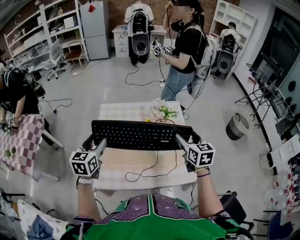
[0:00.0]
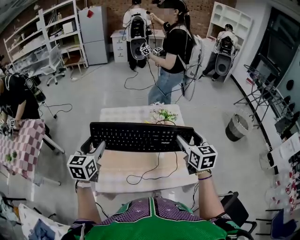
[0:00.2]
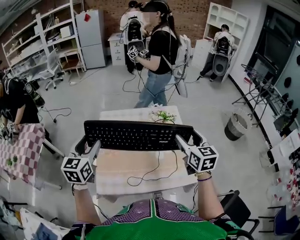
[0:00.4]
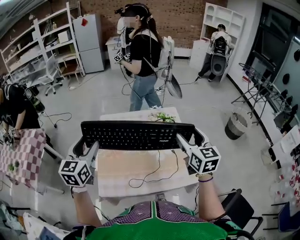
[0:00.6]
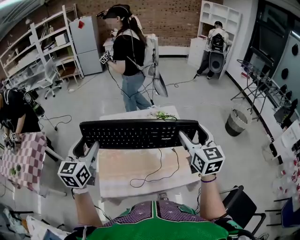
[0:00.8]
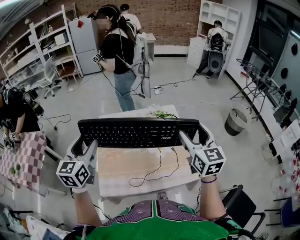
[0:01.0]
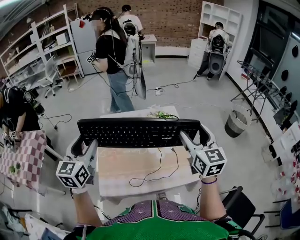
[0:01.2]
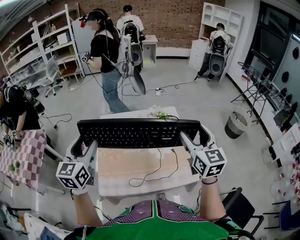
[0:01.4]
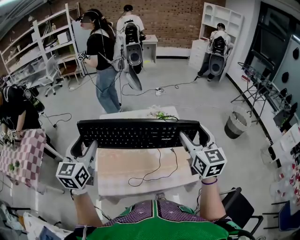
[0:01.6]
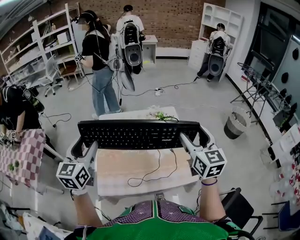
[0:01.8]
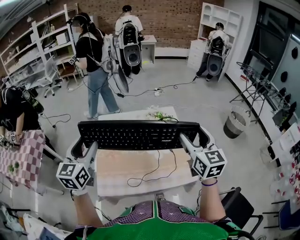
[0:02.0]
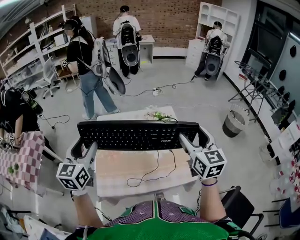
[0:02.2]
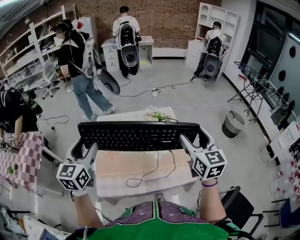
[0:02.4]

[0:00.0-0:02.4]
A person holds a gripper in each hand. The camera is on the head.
0:00.0 to 0:01.2: The left gripper moves upward, about 15 cm. The right gripper shifts some 15 cm upward and backward.
0:01.2 to 0:02.4: The grippers stay close to where they were, moving slightly.

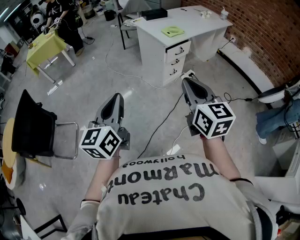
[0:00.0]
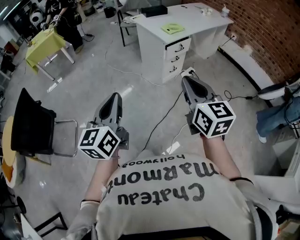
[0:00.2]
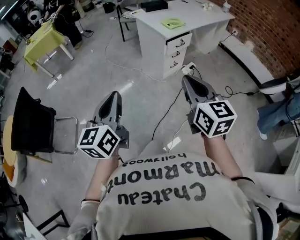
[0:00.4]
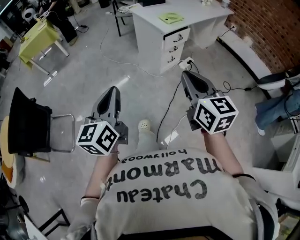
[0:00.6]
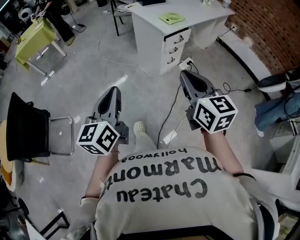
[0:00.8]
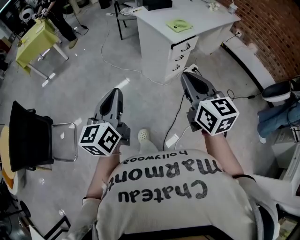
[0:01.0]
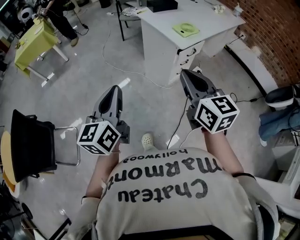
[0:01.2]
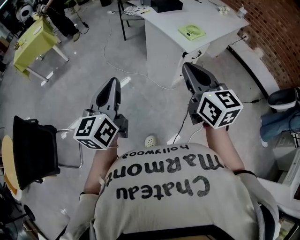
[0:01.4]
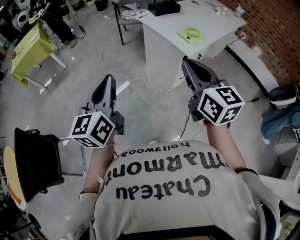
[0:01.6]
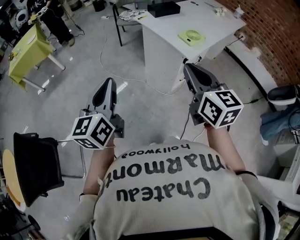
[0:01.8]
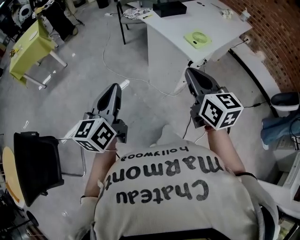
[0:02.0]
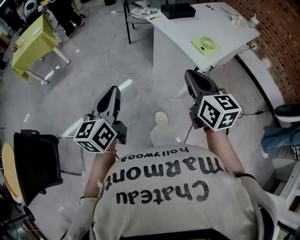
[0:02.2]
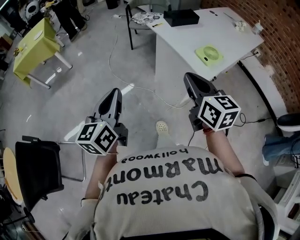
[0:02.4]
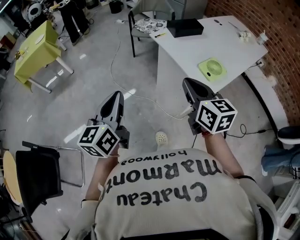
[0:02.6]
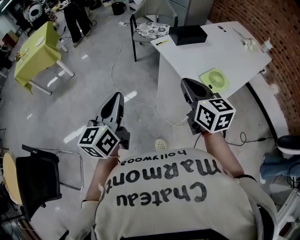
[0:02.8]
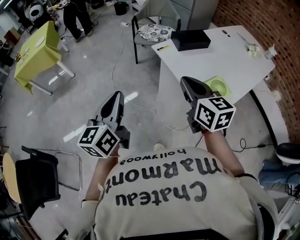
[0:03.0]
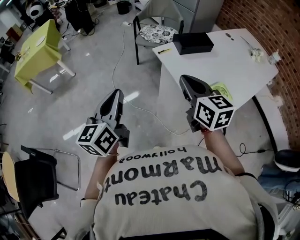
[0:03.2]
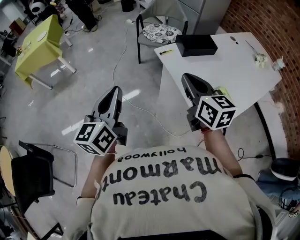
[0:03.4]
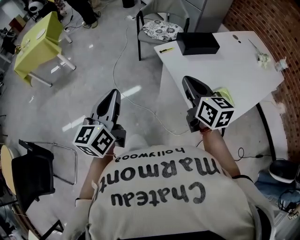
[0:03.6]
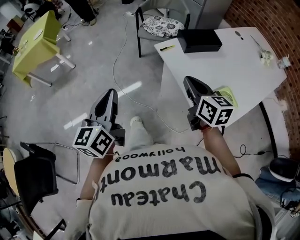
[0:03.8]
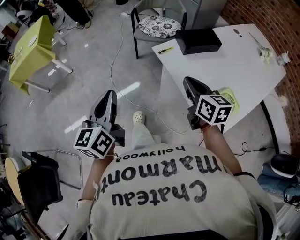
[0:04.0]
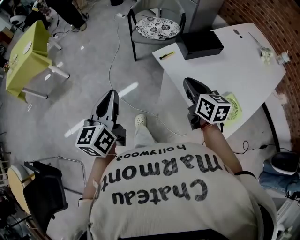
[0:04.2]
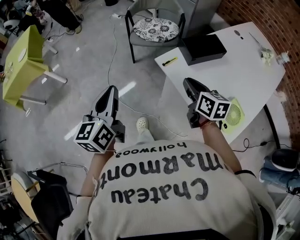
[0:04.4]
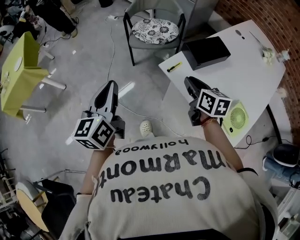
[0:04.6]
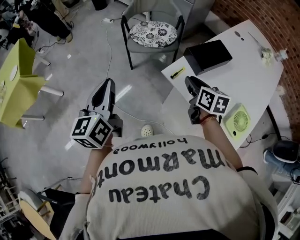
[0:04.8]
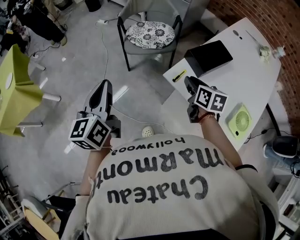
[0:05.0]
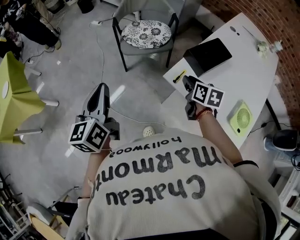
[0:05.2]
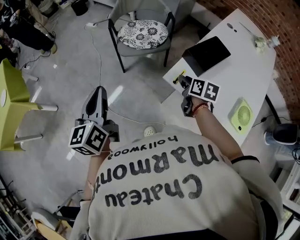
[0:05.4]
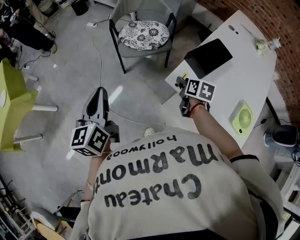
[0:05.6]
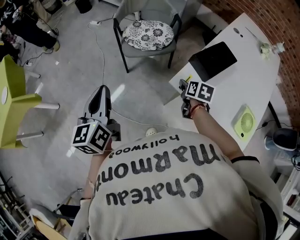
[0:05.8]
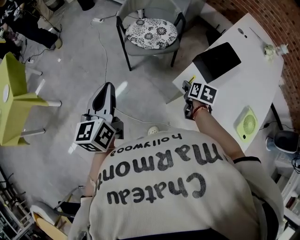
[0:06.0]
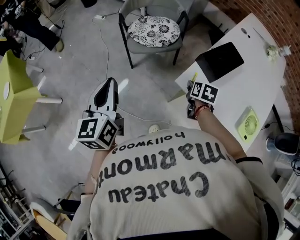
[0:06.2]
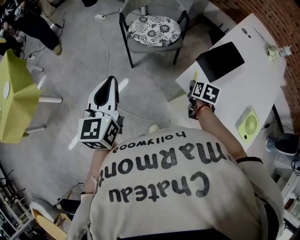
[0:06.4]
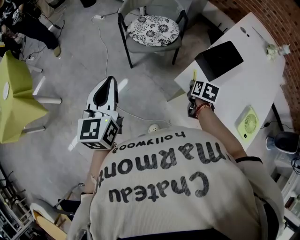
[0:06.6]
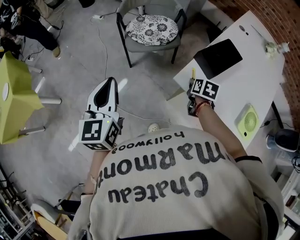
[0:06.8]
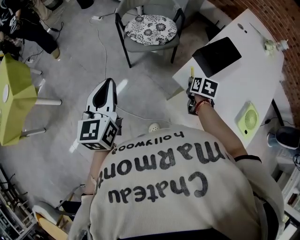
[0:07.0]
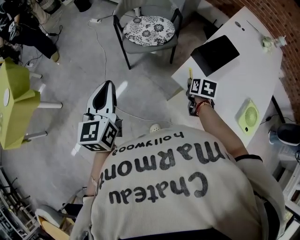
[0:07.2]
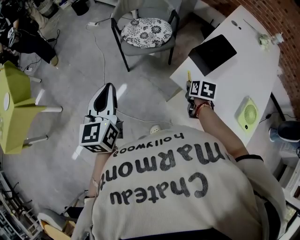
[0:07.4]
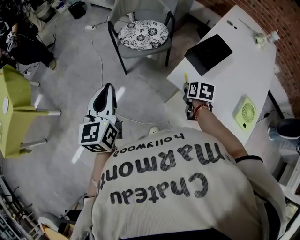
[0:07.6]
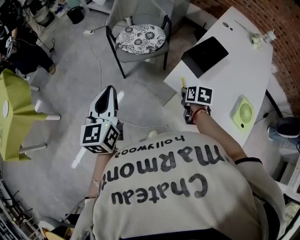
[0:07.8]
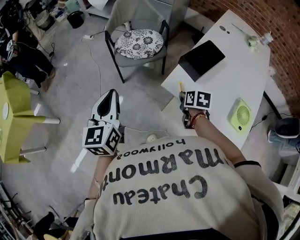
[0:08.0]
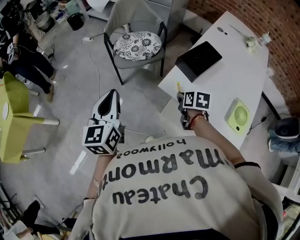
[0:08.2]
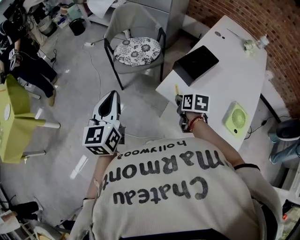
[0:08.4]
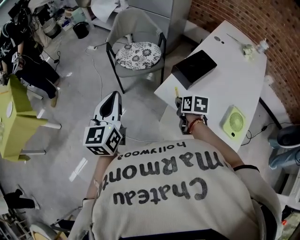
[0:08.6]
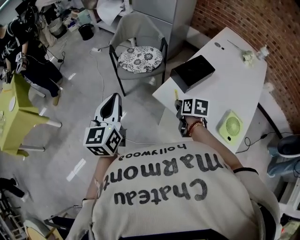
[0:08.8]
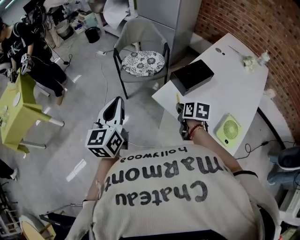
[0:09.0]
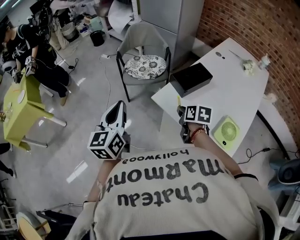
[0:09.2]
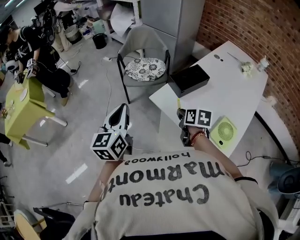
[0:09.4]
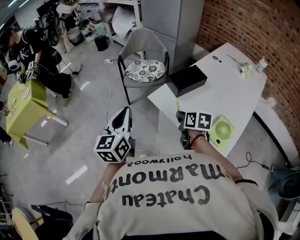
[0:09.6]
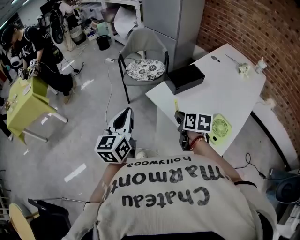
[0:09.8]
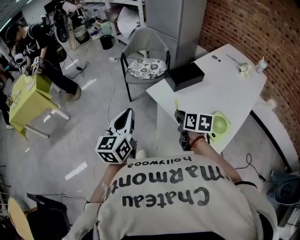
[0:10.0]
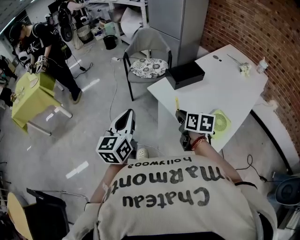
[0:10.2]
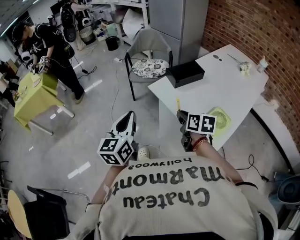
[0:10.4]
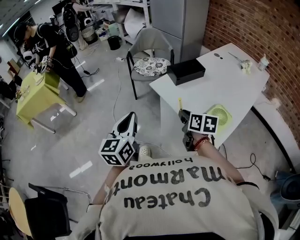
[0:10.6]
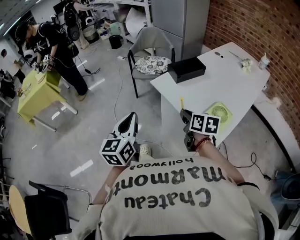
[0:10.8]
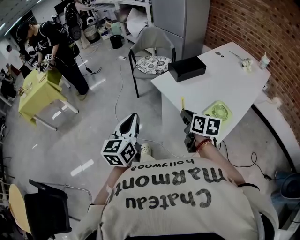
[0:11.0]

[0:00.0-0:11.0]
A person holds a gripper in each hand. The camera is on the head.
0:00.0 to 0:01.6: The left gripper moves forward, roughly 35 cm; the right gripper travels forward and to the left by approximately 35 cm.
0:01.6 to 0:03.2: Both grippers move forward, roughly 40 cm.
0:03.2 to 0:04.8: The right gripper moves forward and downward, about 35 cm, rotates about 30 degrees, and opens up; the left gripper goes approximately 35 cm forward.
0:04.8 to 0:06.2: The right gripper moves downward and forward, roughly 15 cm, and swivels some 30 degrees. Meanwhile the left gripper shifts approximately 10 cm forward and to the left.
0:06.2 to 0:07.8: The right gripper is displaced backward by approximately 5 cm.
0:07.8 to 0:09.4: The left gripper travels backward, to the right and upward by some 20 cm. The right gripper heads upward, backward and to the right, covering roughly 15 cm.
0:09.4 to 0:11.0: Both grippers move backward, about 20 cm.

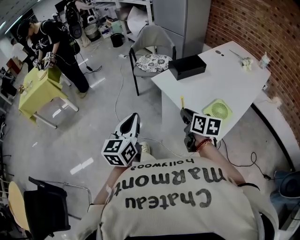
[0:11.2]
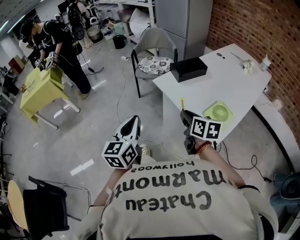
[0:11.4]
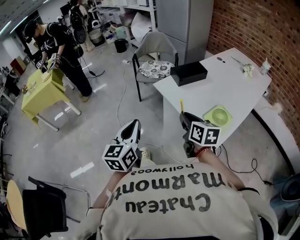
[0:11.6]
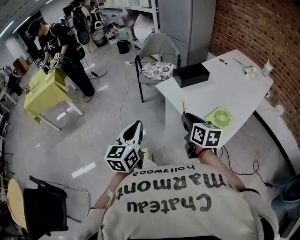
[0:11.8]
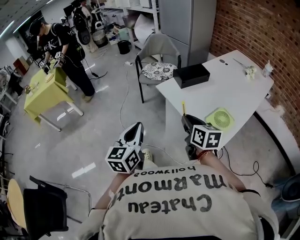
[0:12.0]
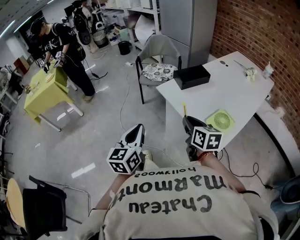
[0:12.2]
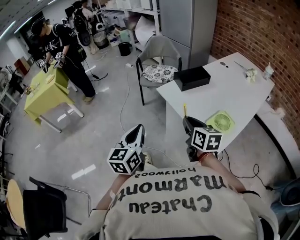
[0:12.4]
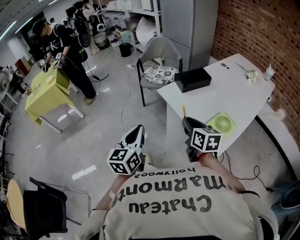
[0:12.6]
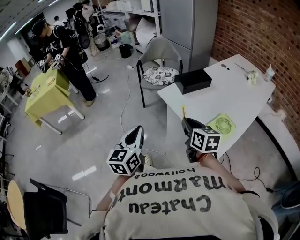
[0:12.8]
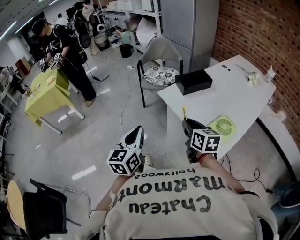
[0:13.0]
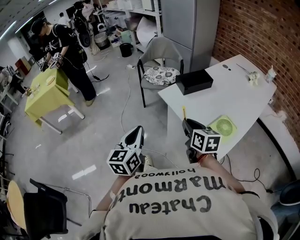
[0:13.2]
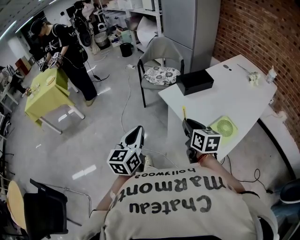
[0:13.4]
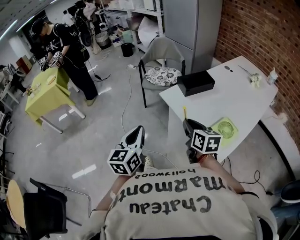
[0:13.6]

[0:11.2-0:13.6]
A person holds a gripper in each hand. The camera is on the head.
0:11.2 to 0:13.6: The grippers move only a little.

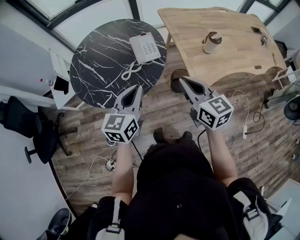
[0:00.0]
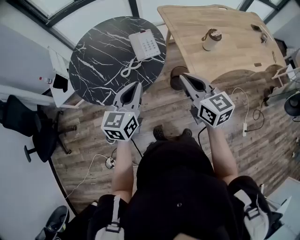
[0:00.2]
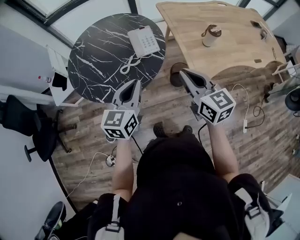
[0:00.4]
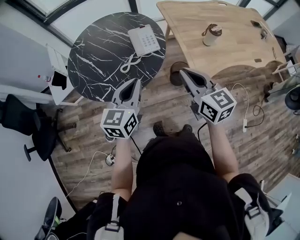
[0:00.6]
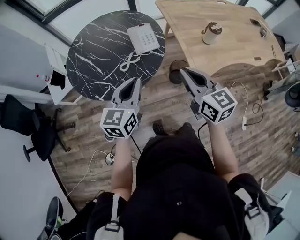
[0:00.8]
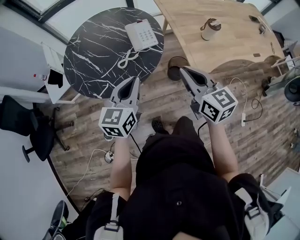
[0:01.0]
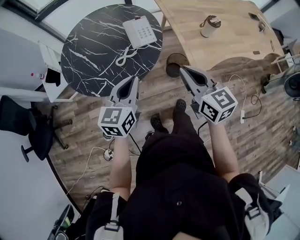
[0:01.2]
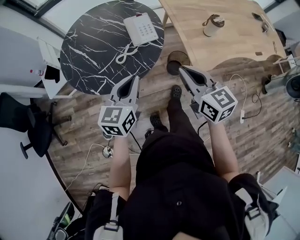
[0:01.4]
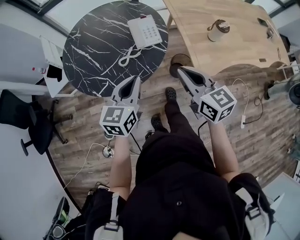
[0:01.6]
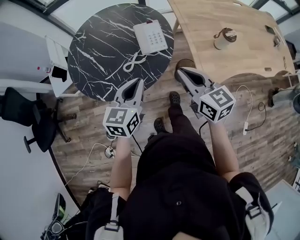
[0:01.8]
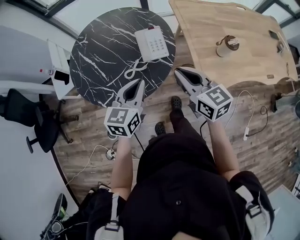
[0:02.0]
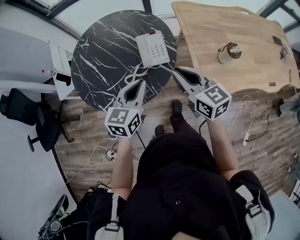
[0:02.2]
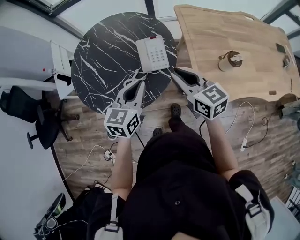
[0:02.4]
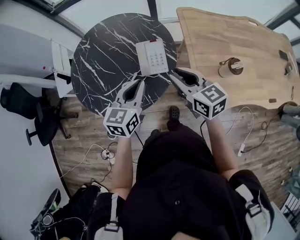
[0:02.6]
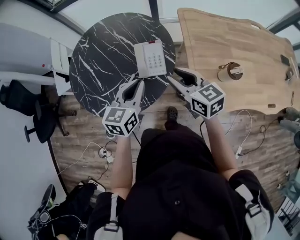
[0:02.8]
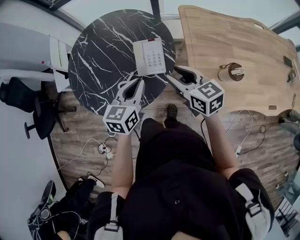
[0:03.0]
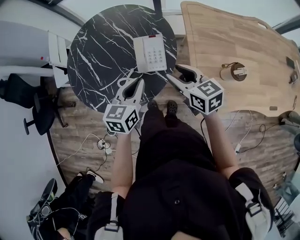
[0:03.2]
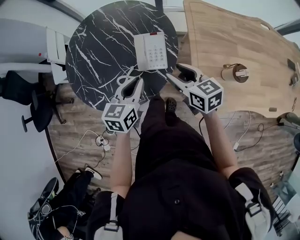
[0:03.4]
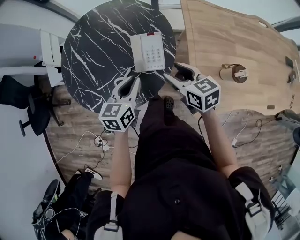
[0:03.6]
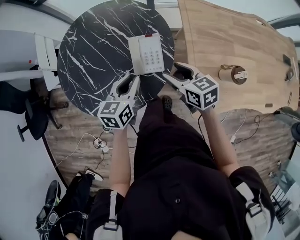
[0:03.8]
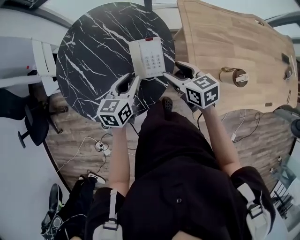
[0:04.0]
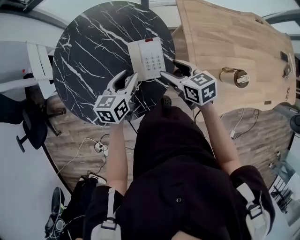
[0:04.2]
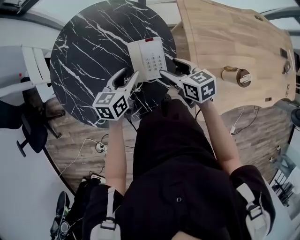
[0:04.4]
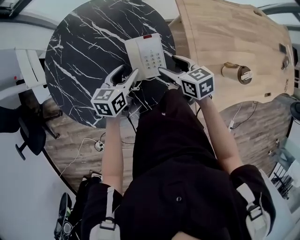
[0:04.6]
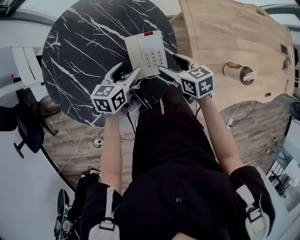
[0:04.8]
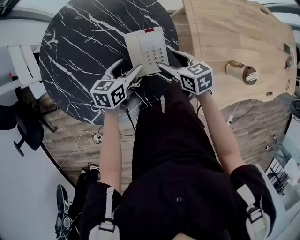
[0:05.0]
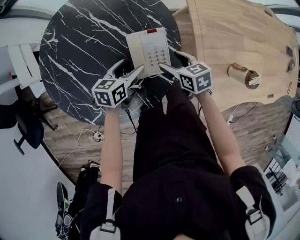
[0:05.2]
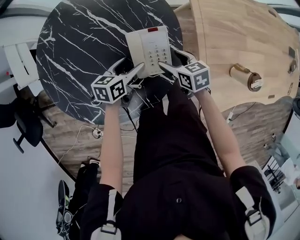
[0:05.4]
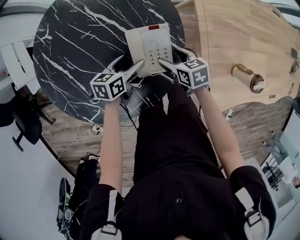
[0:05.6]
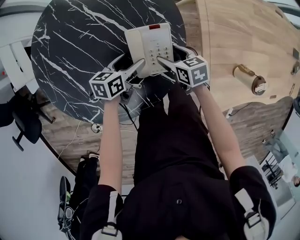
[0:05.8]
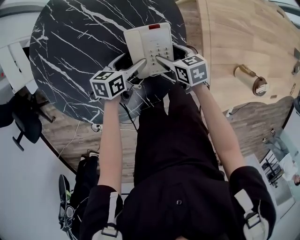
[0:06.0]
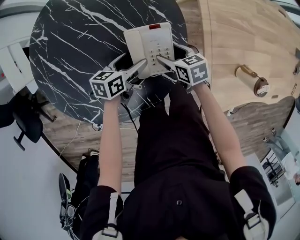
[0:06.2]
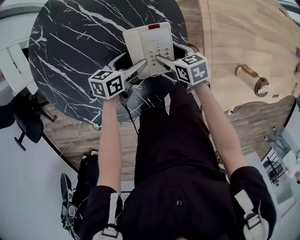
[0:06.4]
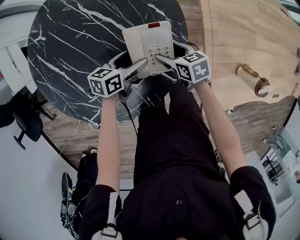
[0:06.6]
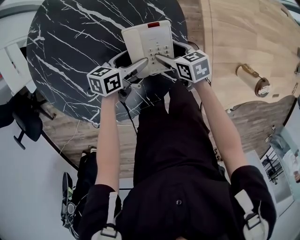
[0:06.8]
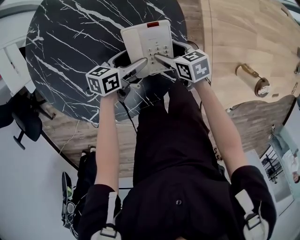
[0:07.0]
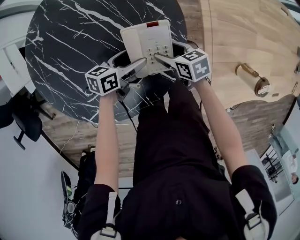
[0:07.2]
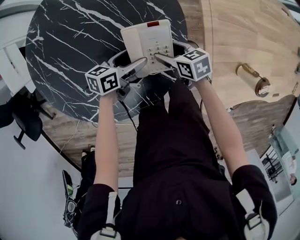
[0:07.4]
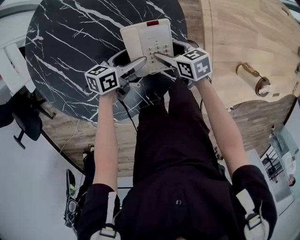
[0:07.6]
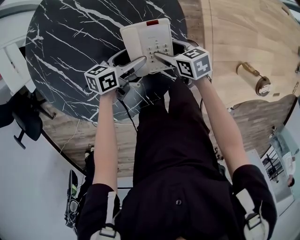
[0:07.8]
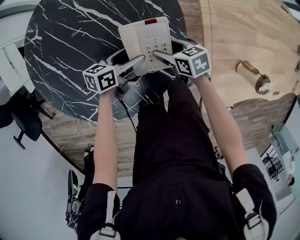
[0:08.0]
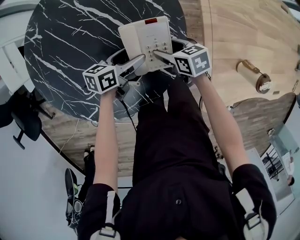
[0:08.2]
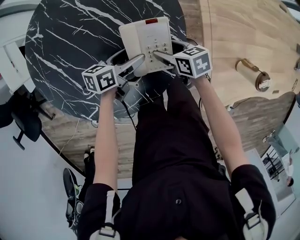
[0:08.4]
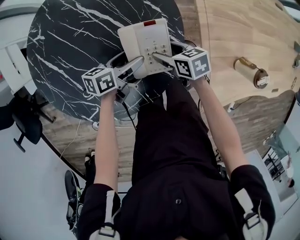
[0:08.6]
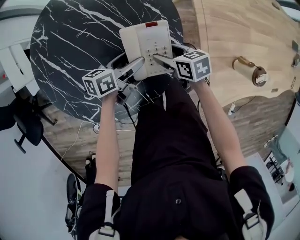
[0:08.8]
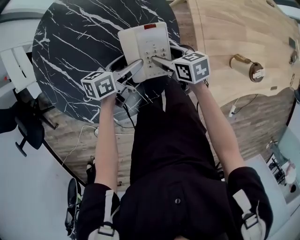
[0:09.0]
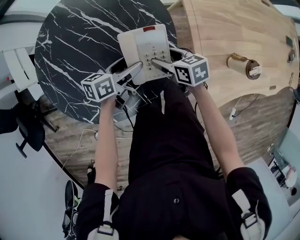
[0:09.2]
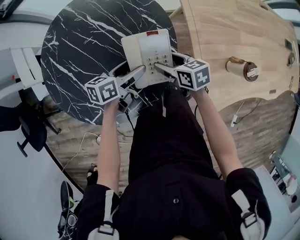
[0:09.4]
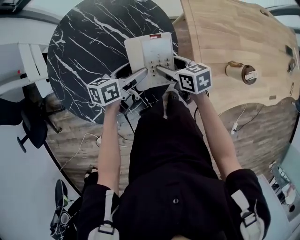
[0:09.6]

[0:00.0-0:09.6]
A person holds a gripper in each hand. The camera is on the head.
0:00.0 to 0:01.6: The grippers stay close to where they were, moving slightly.
0:01.6 to 0:03.2: The left gripper moves forward and to the right, approximately 20 cm; the right gripper shifts roughly 20 cm forward, turns by approximately 20 degrees, and opens its fingers.
0:03.2 to 0:04.8: The left gripper heads forward and downward, covering about 20 cm, rotates approximately 20 degrees, and opens; the right gripper goes about 15 cm downward and forward, changes its angle by approximately 20 degrees, and opens up.
0:04.8 to 0:06.4: Both grippers travel together downward, some 10 cm.
0:06.4 to 0:08.0: The grippers stay close to where they were, moving slightly.
0:08.0 to 0:09.6: The grippers both shift upward by about 10 cm.
